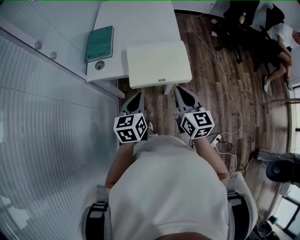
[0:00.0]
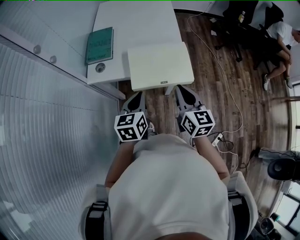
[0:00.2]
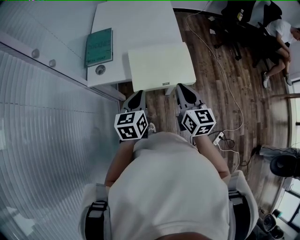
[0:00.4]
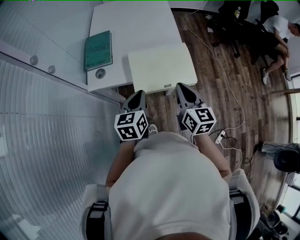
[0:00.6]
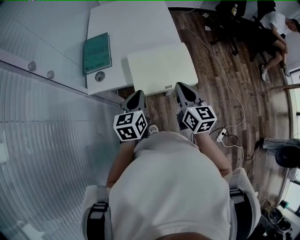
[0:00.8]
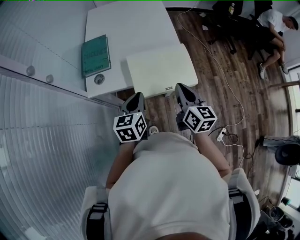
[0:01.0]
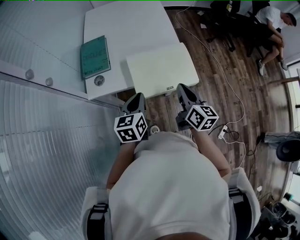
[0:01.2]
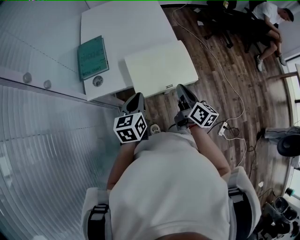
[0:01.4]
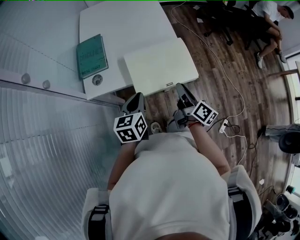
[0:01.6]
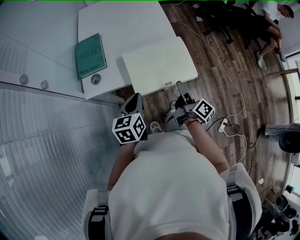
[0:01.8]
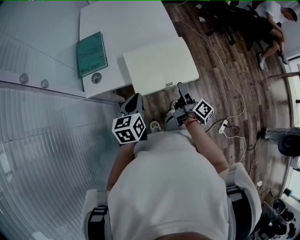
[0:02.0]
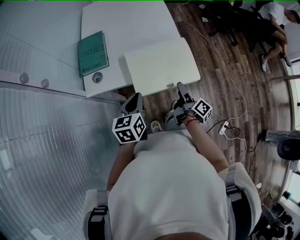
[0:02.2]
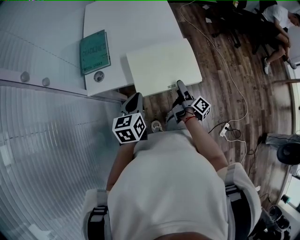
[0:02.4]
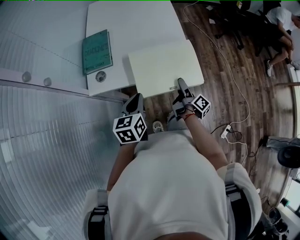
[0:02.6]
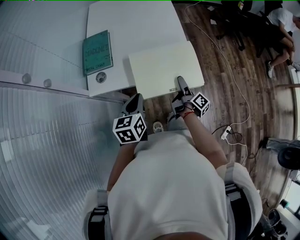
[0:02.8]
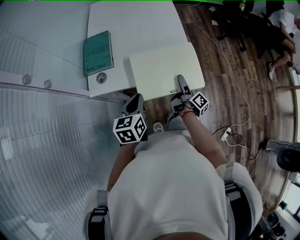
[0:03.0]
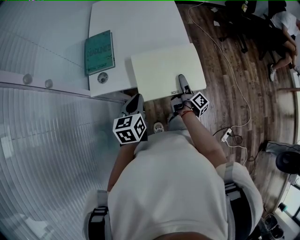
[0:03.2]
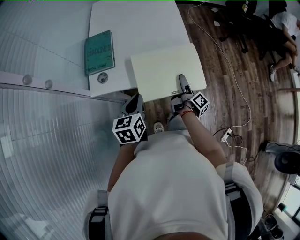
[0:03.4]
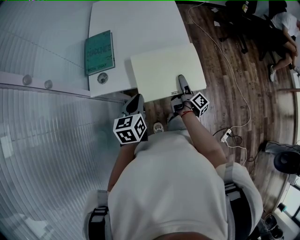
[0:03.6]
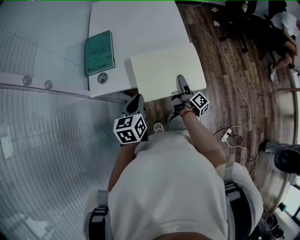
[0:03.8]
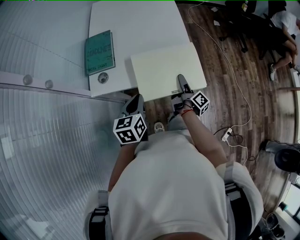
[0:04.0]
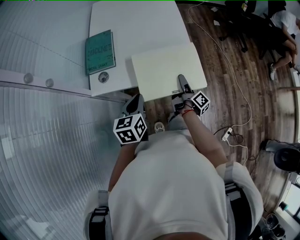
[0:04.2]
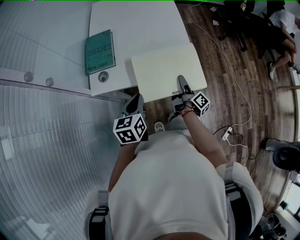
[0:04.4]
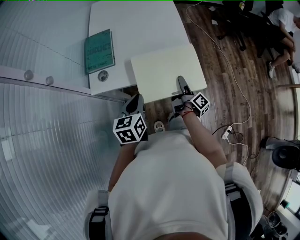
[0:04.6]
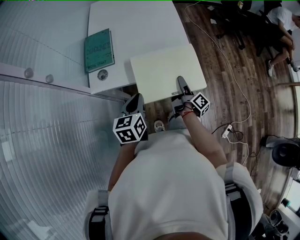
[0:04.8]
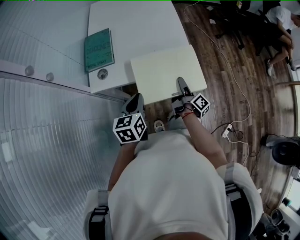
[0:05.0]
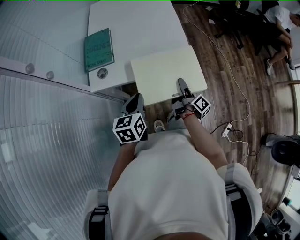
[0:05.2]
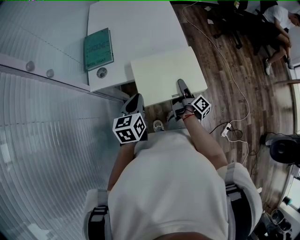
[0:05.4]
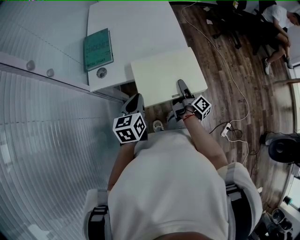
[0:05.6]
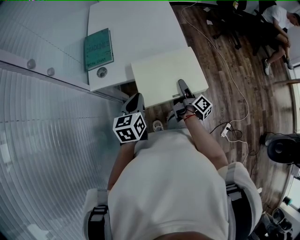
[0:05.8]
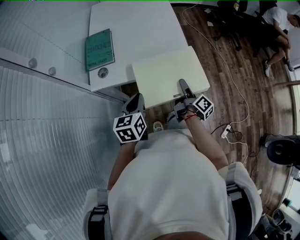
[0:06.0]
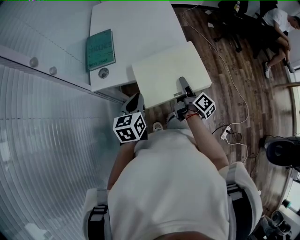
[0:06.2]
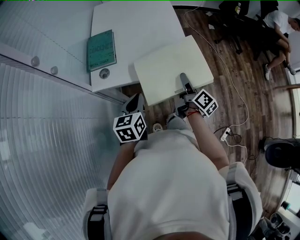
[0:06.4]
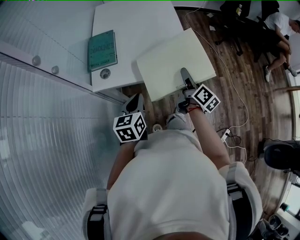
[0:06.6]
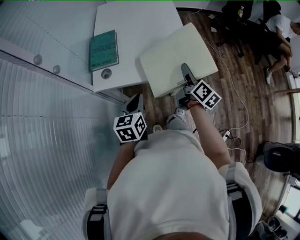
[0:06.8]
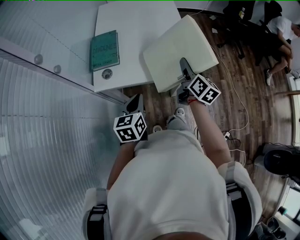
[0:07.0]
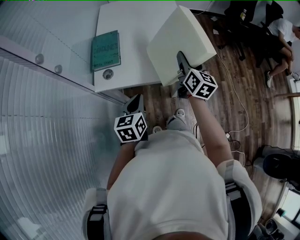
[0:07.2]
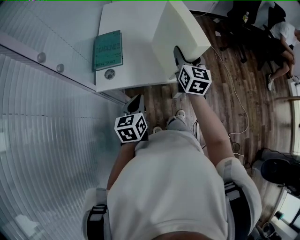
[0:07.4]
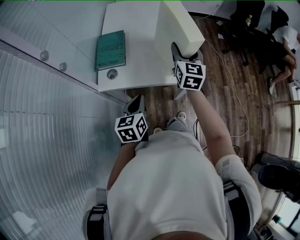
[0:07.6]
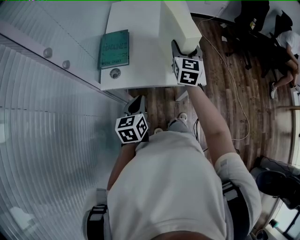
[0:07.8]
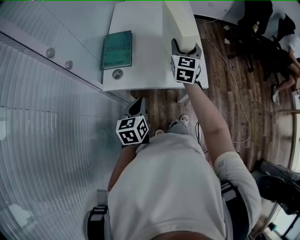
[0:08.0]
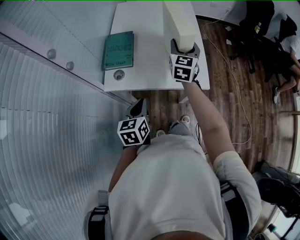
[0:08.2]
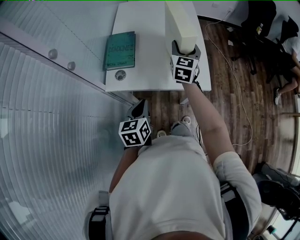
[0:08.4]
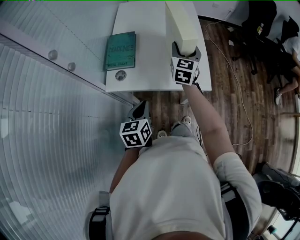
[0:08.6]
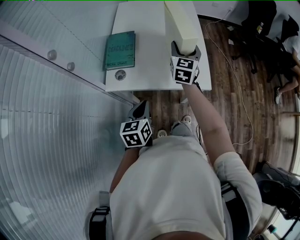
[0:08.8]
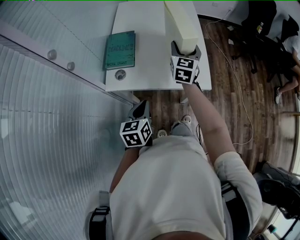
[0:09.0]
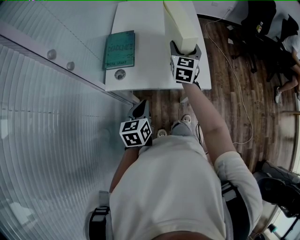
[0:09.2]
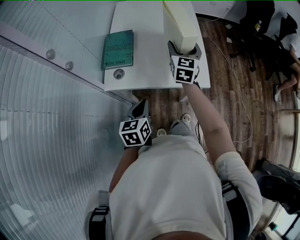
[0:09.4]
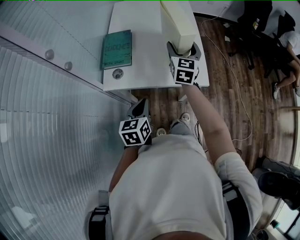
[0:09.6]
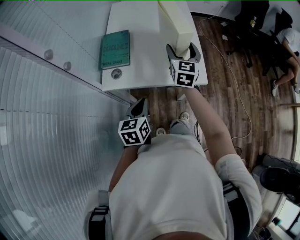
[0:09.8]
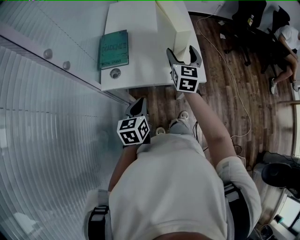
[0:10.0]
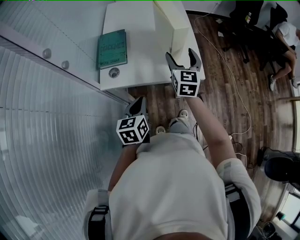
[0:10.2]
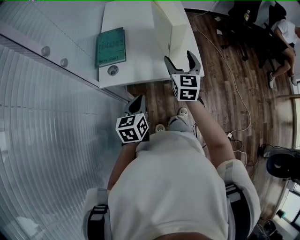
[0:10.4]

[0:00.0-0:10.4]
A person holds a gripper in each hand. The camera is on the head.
0:00.0 to 0:01.4: The right gripper moves downward and forward, about 10 cm, and turns by some 40 degrees, while the left gripper is displaced forward by some 5 cm.
0:01.4 to 0:03.0: The right gripper heads downward and forward, covering roughly 15 cm, rolls clockwise, seen from behind, by about 40 degrees, and opens its fingers.
0:03.0 to 0:04.4: The two grippers keep their place.
0:04.4 to 0:06.0: The right gripper goes about 5 cm backward.
0:06.0 to 0:07.4: The right gripper goes some 25 cm upward and forward, and rotates around the line of its fingers by some 70 degrees, counterclockwise from behind.
0:07.4 to 0:09.0: The right gripper travels forward and to the left by roughly 10 cm.
0:09.0 to 0:10.4: The right gripper goes approximately 10 cm backward.

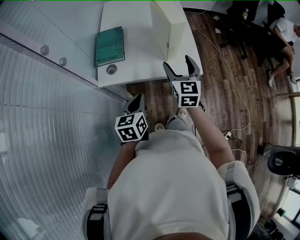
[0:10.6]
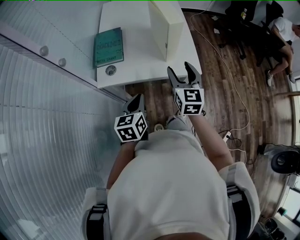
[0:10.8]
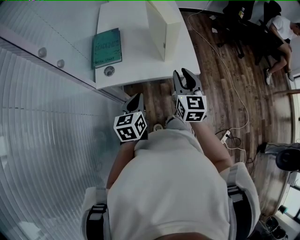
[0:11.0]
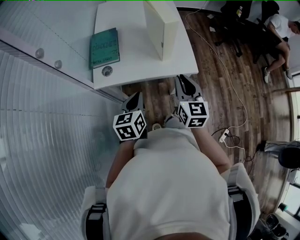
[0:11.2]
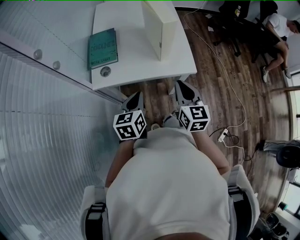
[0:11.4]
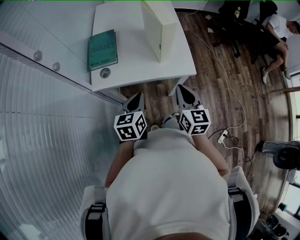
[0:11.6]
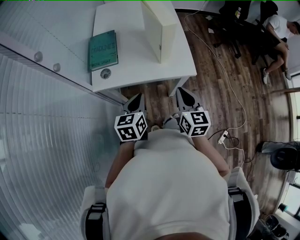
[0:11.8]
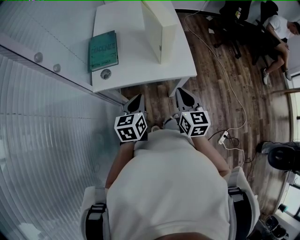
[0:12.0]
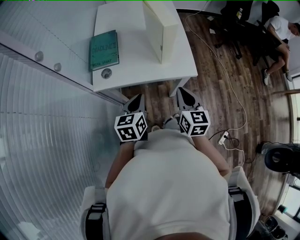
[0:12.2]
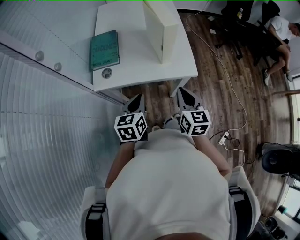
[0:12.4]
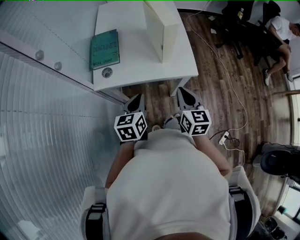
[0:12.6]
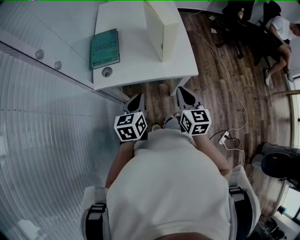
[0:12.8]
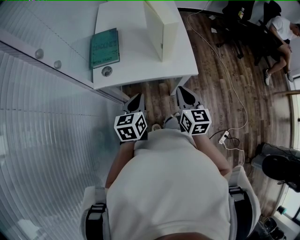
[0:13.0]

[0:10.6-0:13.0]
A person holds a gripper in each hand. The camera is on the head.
0:10.6 to 0:11.8: The right gripper goes roughly 10 cm backward, and closes.
0:11.8 to 0:13.0: Neither gripper changes place.

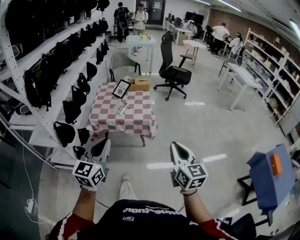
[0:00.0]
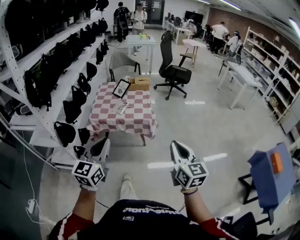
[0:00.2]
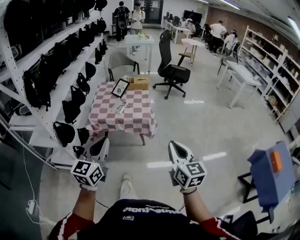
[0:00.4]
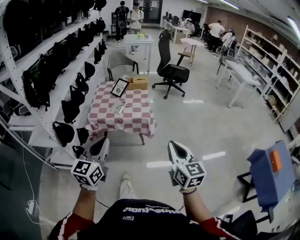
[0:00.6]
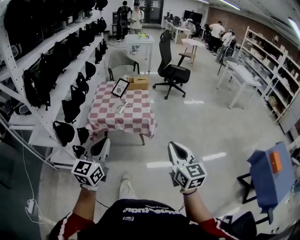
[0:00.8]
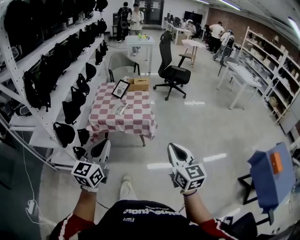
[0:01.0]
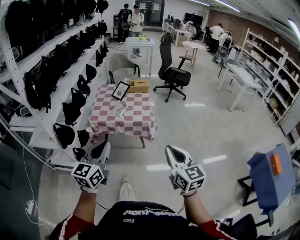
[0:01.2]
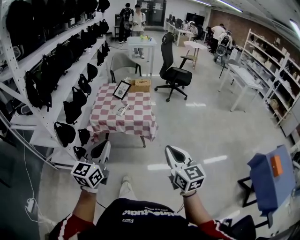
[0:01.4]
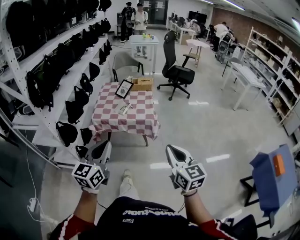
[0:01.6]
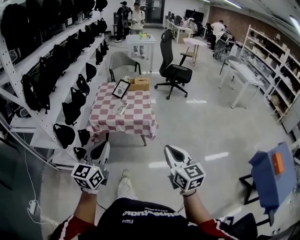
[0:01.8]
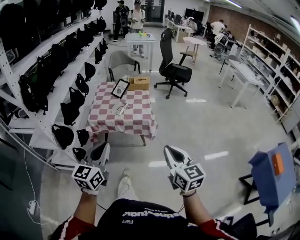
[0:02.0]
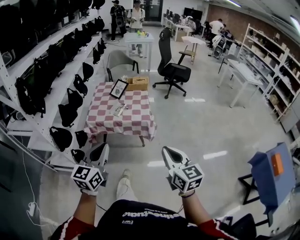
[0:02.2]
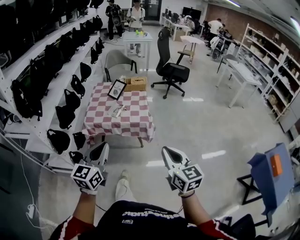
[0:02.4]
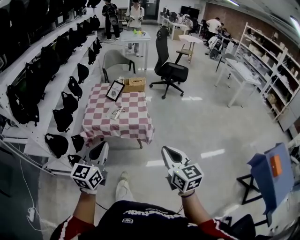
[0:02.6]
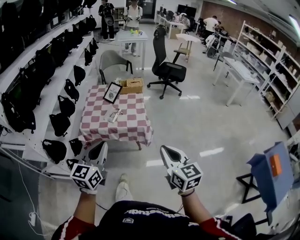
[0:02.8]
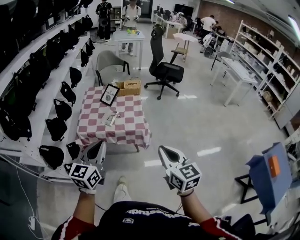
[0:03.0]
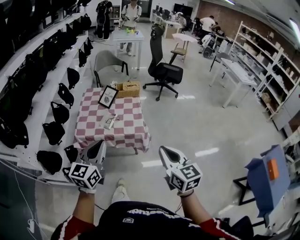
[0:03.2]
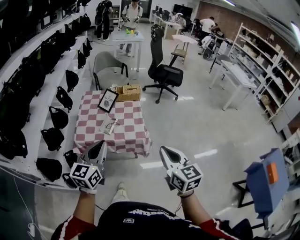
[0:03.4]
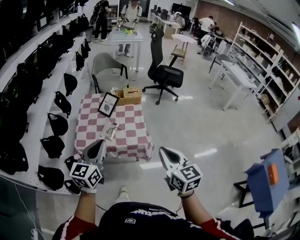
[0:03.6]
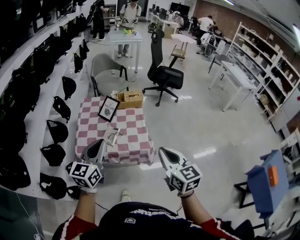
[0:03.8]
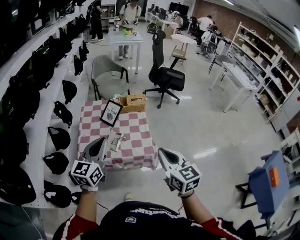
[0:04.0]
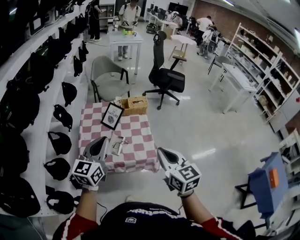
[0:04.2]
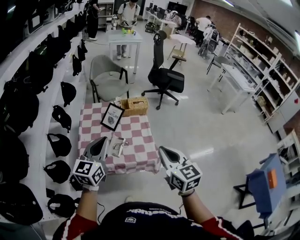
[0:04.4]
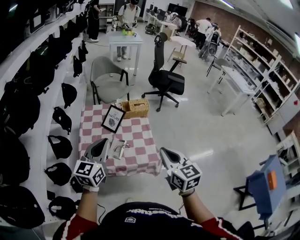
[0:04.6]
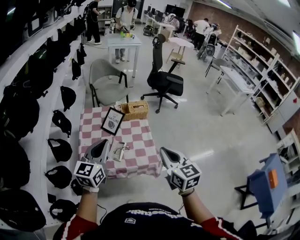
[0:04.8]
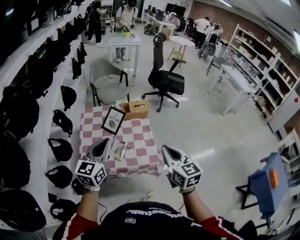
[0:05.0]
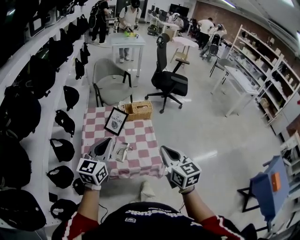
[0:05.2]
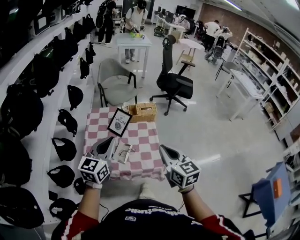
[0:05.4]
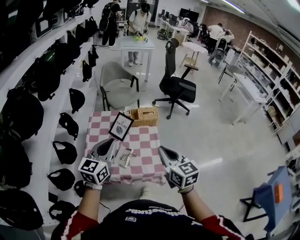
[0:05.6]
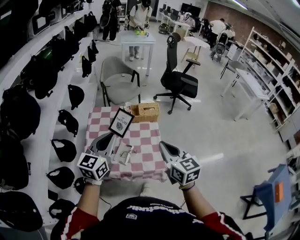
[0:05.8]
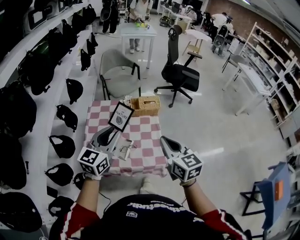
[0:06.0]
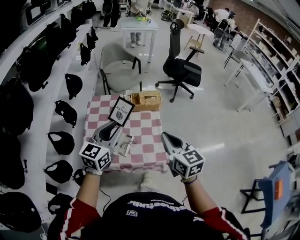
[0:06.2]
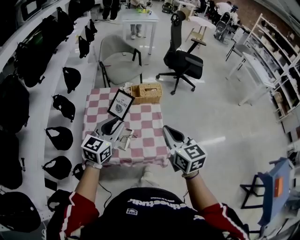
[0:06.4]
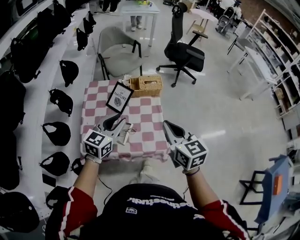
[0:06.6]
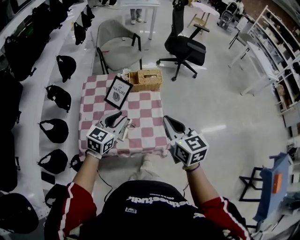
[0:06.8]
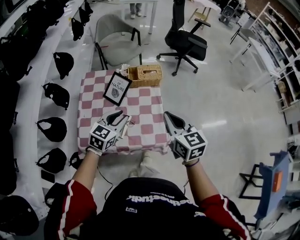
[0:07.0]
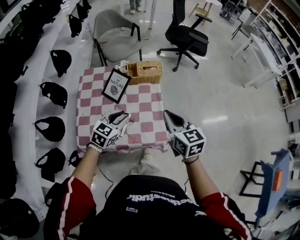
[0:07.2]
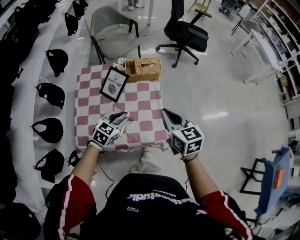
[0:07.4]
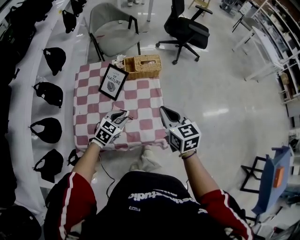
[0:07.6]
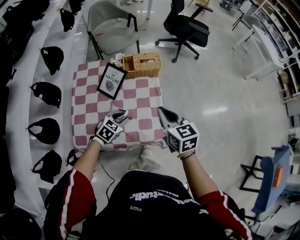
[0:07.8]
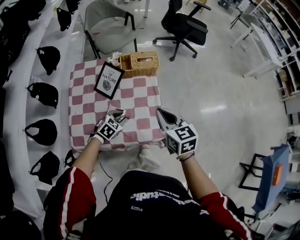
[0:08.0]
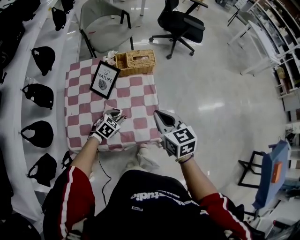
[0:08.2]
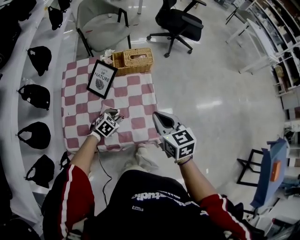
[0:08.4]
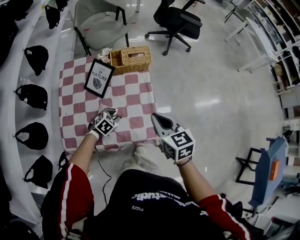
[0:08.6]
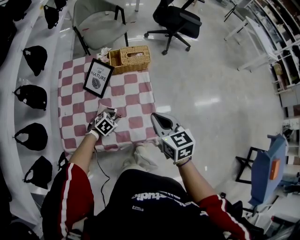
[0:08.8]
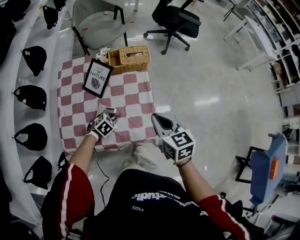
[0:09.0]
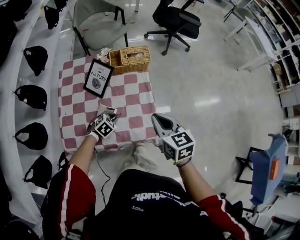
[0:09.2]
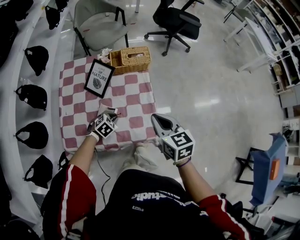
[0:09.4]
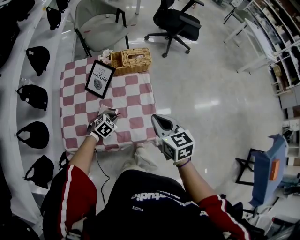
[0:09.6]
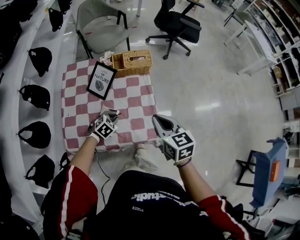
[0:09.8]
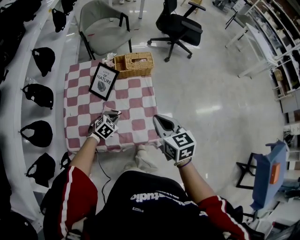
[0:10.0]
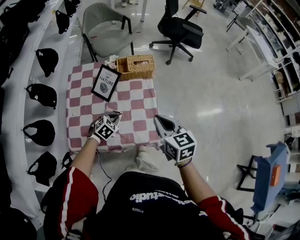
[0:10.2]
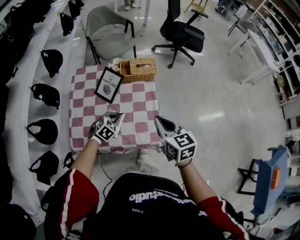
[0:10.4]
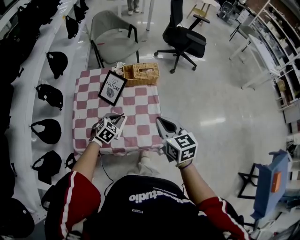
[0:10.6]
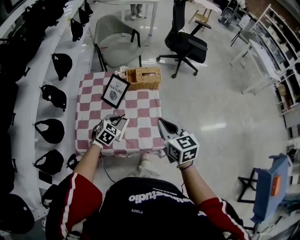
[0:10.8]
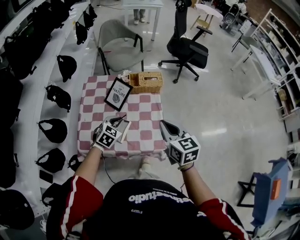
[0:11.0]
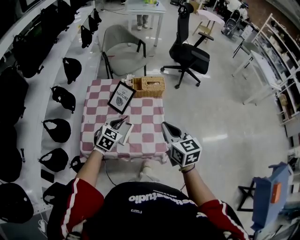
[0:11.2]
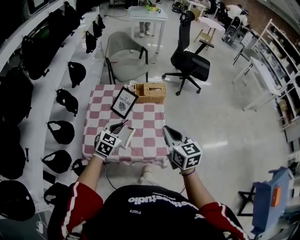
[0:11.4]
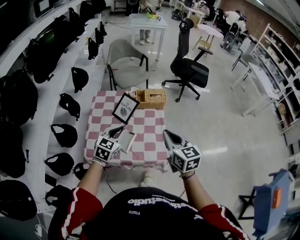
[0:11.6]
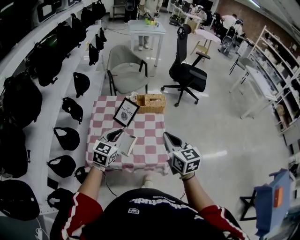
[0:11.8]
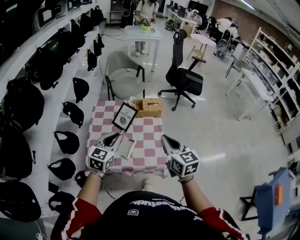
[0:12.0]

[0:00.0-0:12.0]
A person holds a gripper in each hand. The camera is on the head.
0:00.0 to 0:01.6: There are only small adjustments of the grippers.
0:01.6 to 0:03.0: The grippers both shift forward by roughly 15 cm.
0:03.0 to 0:04.4: The right gripper moves forward and to the left, approximately 30 cm; the left gripper travels forward by some 30 cm.
0:04.4 to 0:06.0: Both grippers travel together forward, roughly 10 cm. The left gripper opens up.
0:06.0 to 0:07.6: The right gripper goes roughly 20 cm downward and forward, while the left gripper heads downward, covering roughly 30 cm, and tilts its fingers roughly 40 degrees downward.
0:07.6 to 0:09.0: The left gripper moves downward, some 15 cm, and rotates approximately 20 degrees. Meanwhile the right gripper ends up roughly 5 cm from where it was.
0:09.0 to 0:10.4: The right gripper travels upward by approximately 5 cm. The left gripper moves upward, approximately 10 cm.
0:10.4 to 0:12.0: The left gripper shifts some 30 cm upward, and tips its fingers upward by roughly 40 degrees, while the right gripper travels upward and backward by some 15 cm.
